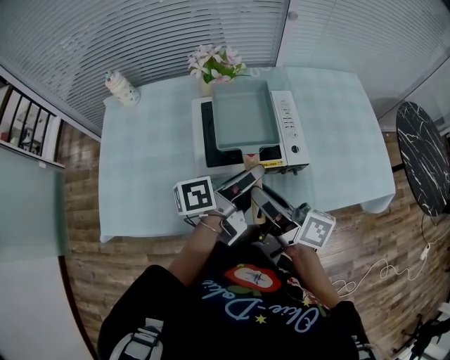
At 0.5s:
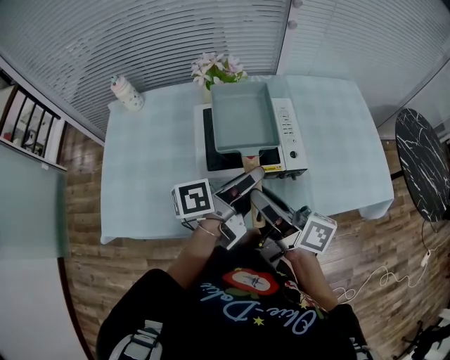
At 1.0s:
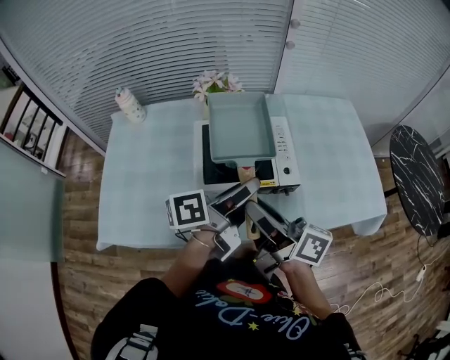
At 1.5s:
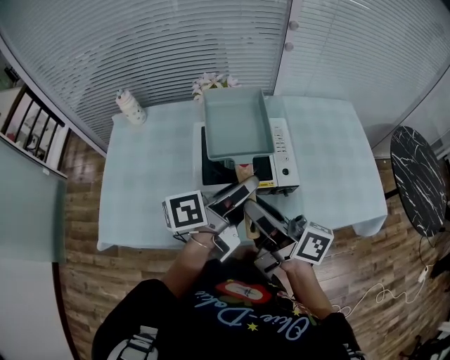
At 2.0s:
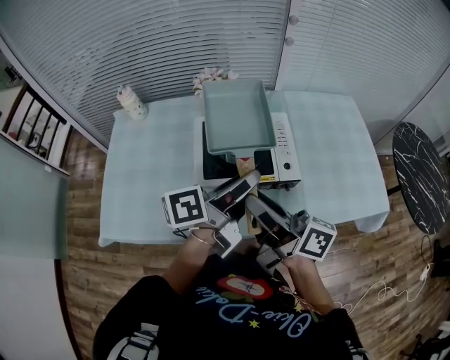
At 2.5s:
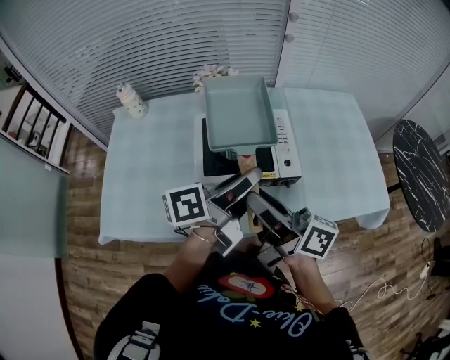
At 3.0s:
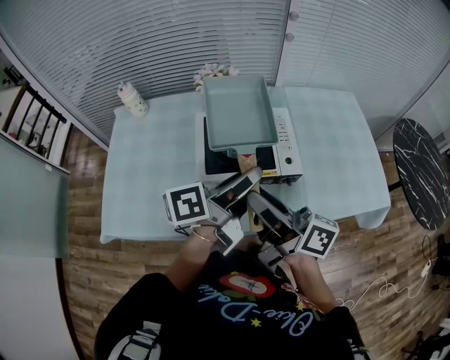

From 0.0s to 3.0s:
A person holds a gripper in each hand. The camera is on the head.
From 0.0s to 1.5s: The two grippers go approximately 5 cm upward.
From 1.5s to 3.0s: Both grippers stay put.

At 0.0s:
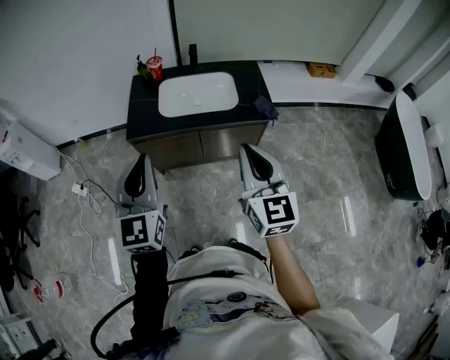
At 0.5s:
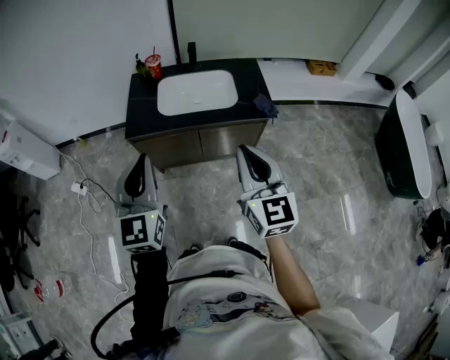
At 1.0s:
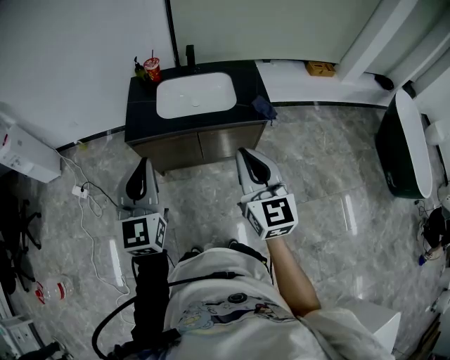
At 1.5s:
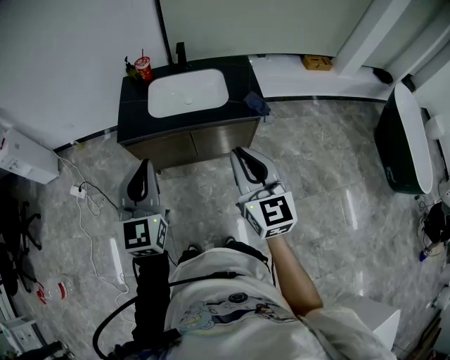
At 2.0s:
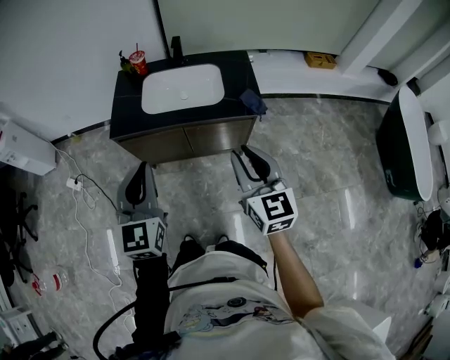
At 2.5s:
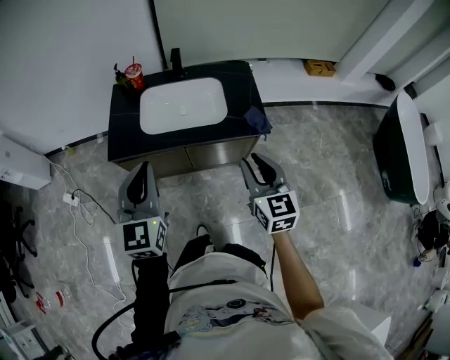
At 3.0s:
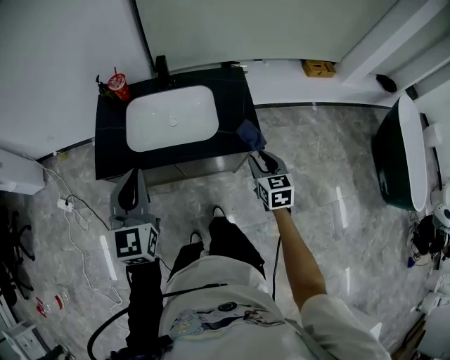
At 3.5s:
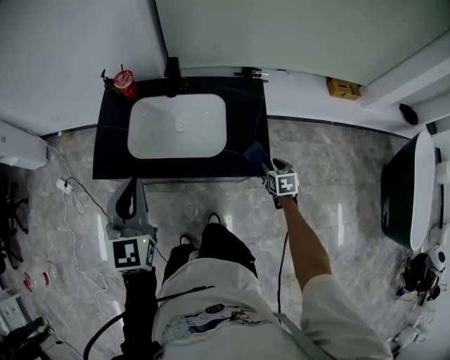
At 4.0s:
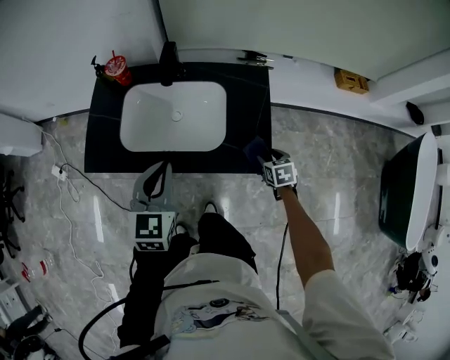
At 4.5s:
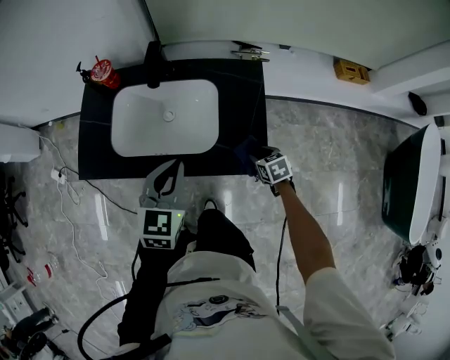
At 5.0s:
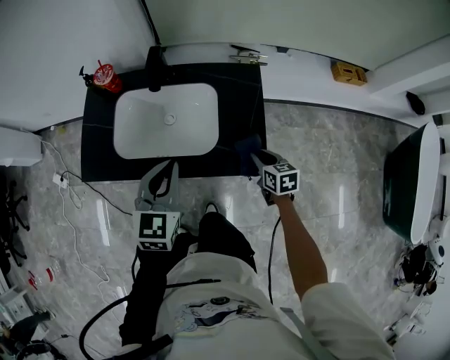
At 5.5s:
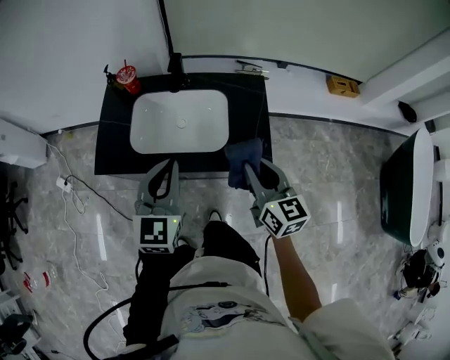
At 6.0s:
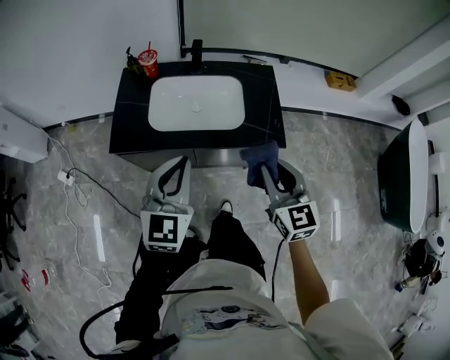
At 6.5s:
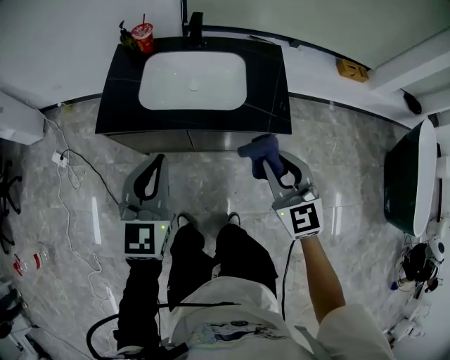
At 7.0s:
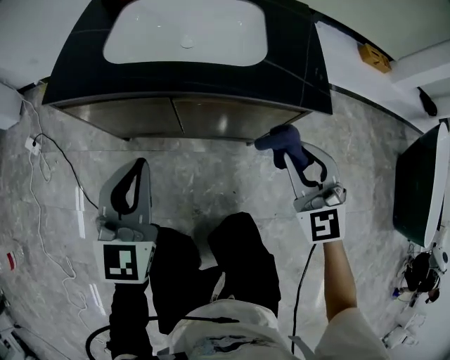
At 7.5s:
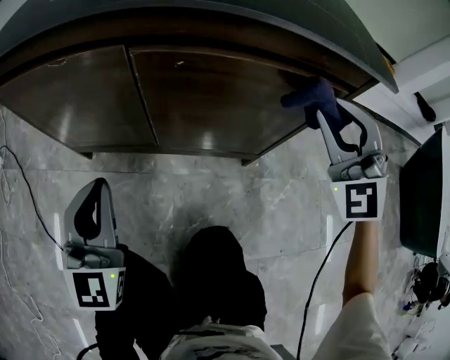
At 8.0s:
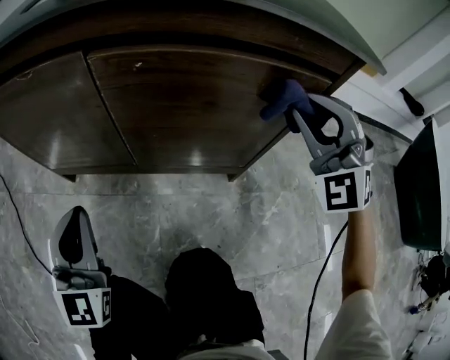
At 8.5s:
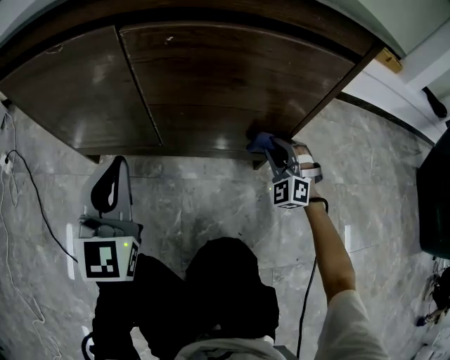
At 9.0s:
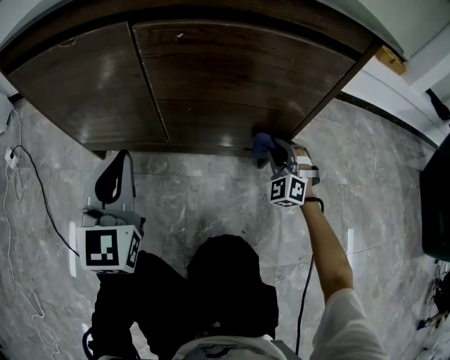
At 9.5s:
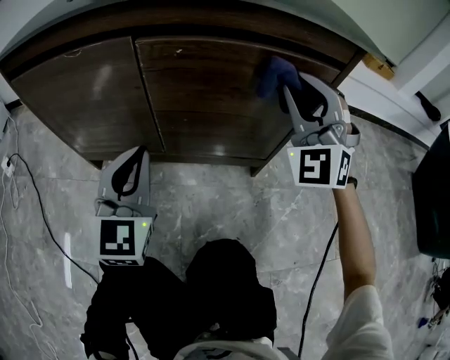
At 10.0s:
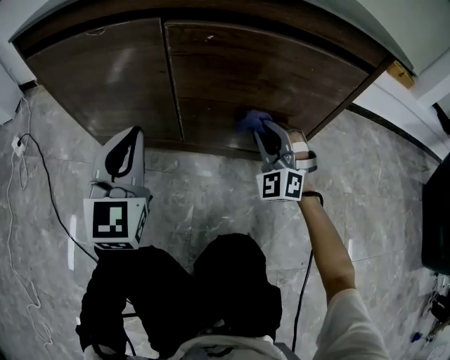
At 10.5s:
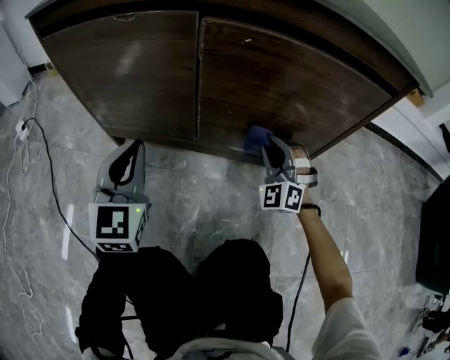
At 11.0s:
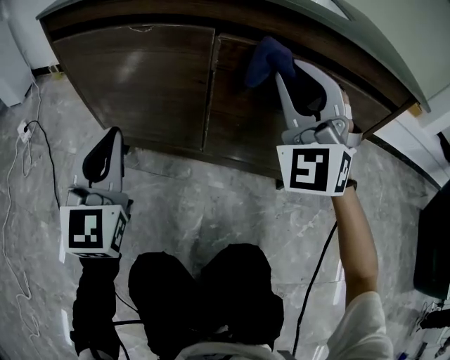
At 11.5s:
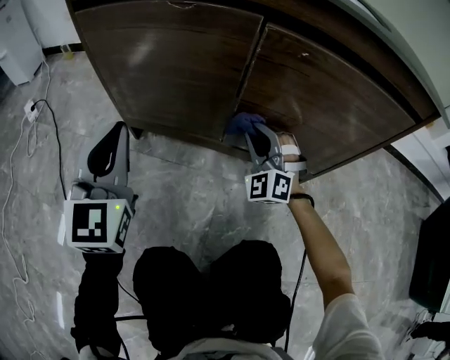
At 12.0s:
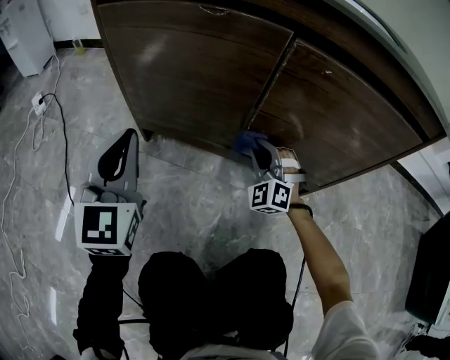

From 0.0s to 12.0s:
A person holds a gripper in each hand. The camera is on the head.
From 0.0s to 2.0s: The left gripper is displaced to the right by approximately 10 cm. The right gripper heads to the right and downward, covering approximately 10 cm, and opens up.
From 2.0s to 4.0s: The left gripper heads forward and downward, covering roughly 30 cm. The right gripper goes some 50 cm downward, forward and to the right, tips its fingers downward by about 50 degrees, and opens up.
From 4.0s to 6.0s: The left gripper travels backward, upward and to the left by some 15 cm. Meanwhile the right gripper moves upward, to the left and backward, some 40 cm, tips its fingers upward by about 40 degrees, and closes up.
From 6.0s to 8.0s: The grippers both shift downward by approximately 50 cm. The right gripper rotates around the line of its fingers by about 70 degrees, counterclockwise from behind.
From 8.0s to 10.0s: The right gripper goes up and down, some 30 cm each way, reversing 2 times.
From 10.0s to 12.0s: The left gripper moves to the left, approximately 15 cm, while the right gripper goes up and down, roughly 30 cm each way, reversing 2 times.

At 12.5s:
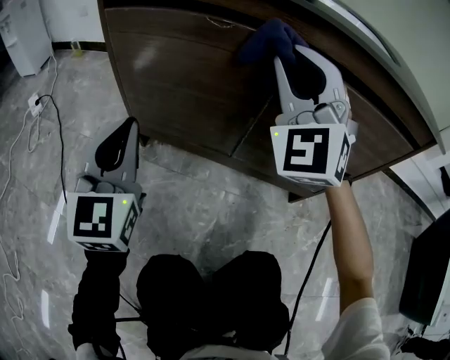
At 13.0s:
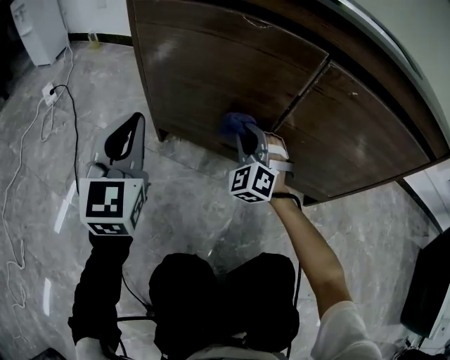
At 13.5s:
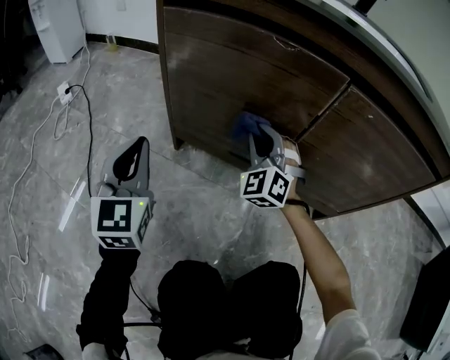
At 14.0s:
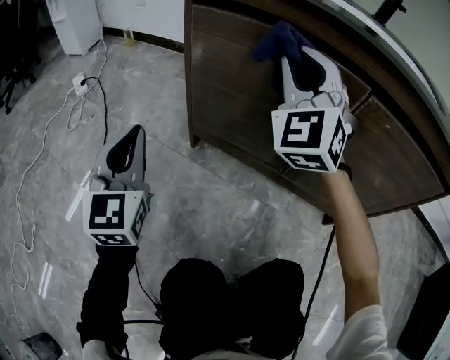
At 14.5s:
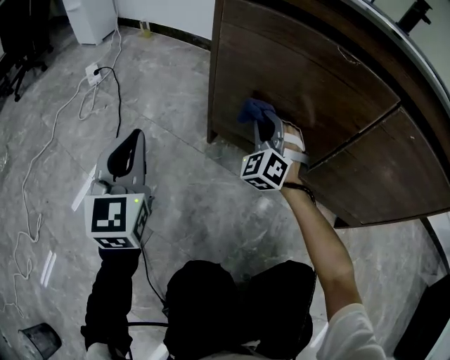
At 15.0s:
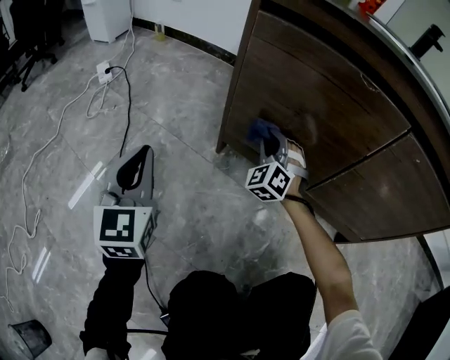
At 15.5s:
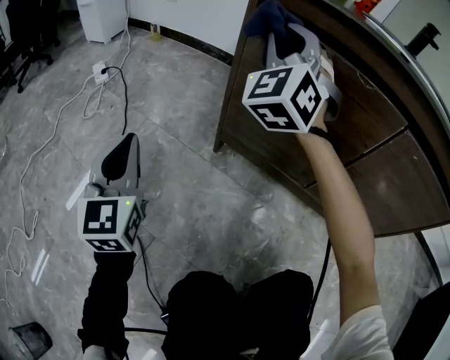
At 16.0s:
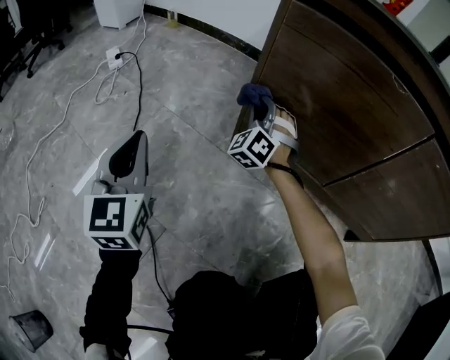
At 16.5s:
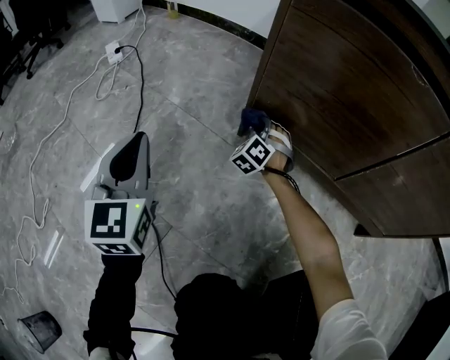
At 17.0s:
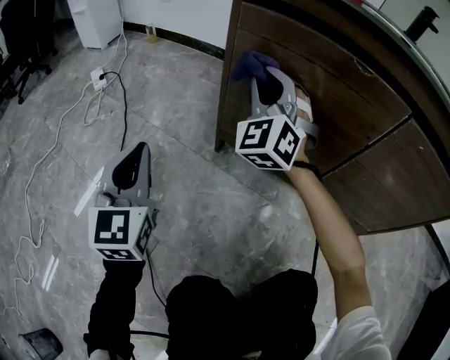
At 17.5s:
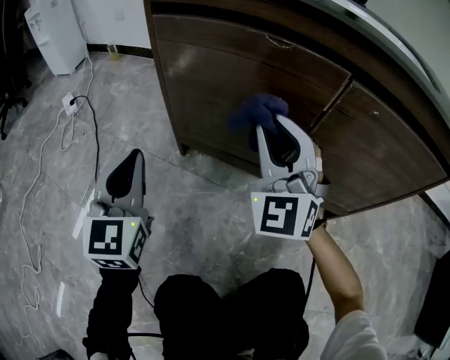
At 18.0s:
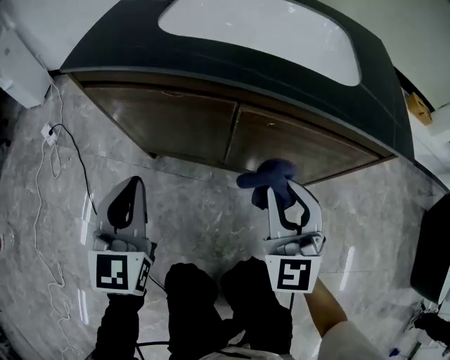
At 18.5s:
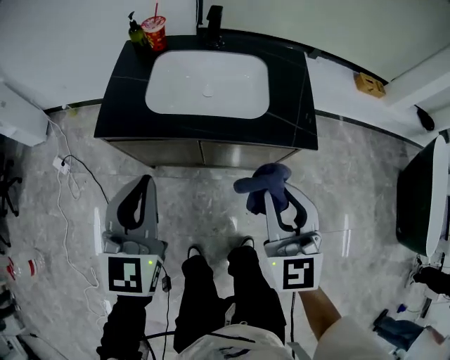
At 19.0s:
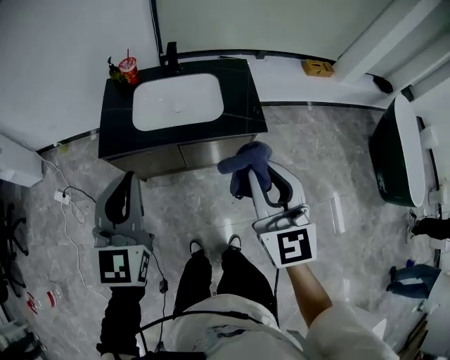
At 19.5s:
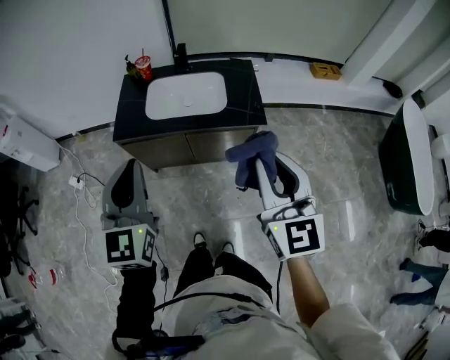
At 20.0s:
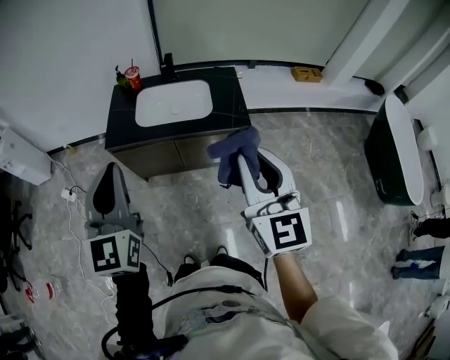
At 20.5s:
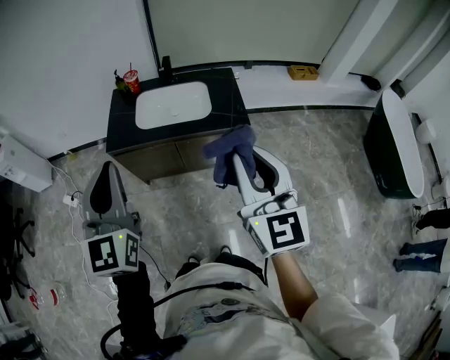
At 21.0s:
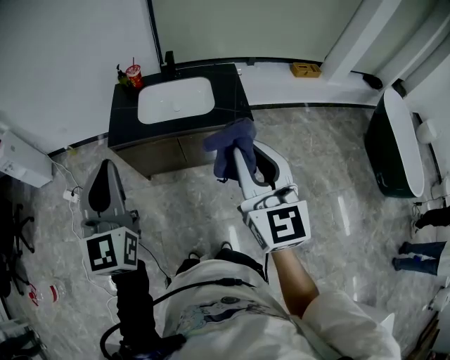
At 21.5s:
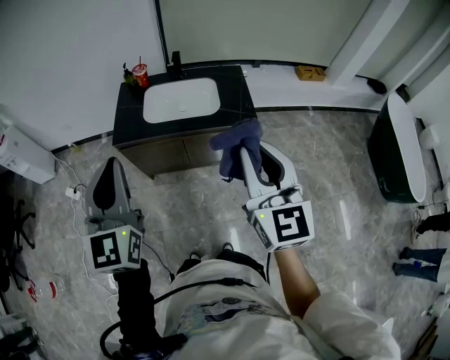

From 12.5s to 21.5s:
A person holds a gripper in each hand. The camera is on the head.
From 12.5s to 14.5s: The right gripper swings up and down, some 30 cm each way, with 2 reversals; the left gripper heads to the left, covering approximately 20 cm.
From 14.5s to 17.0s: The right gripper swings up and down, approximately 40 cm each way, with 2 reversals. The left gripper goes to the left and returns, about 10 cm each way.
From 17.0s to 19.5s: The two grippers go about 70 cm upward. The right gripper rotates around the line of its fingers by approximately 50 degrees, clockwise from behind. Meanwhile the left gripper rotates about 30 degrees.
From 19.5s to 21.5s: The right gripper is displaced to the left by some 5 cm. The left gripper is displaced to the left and upward by roughly 10 cm.

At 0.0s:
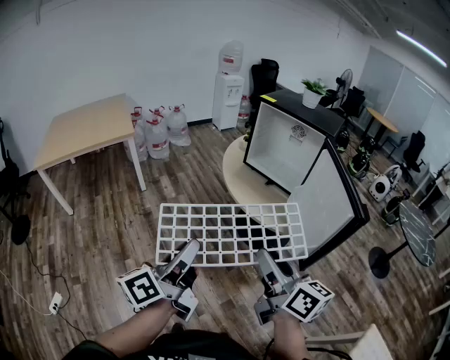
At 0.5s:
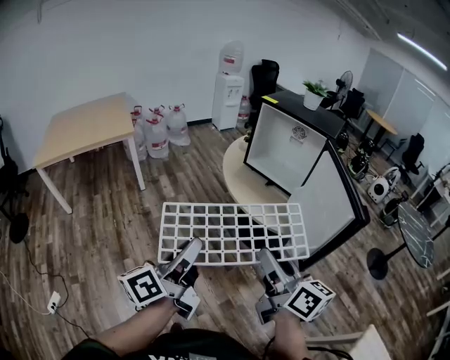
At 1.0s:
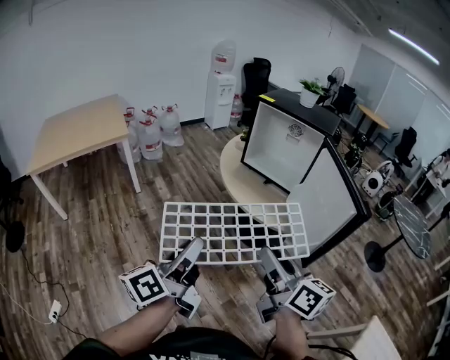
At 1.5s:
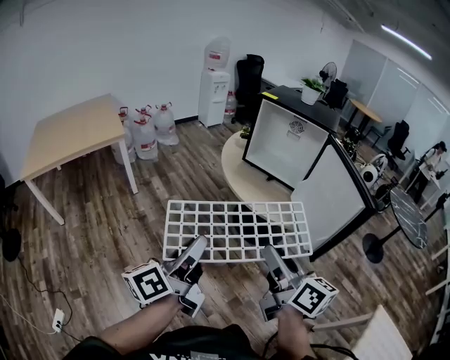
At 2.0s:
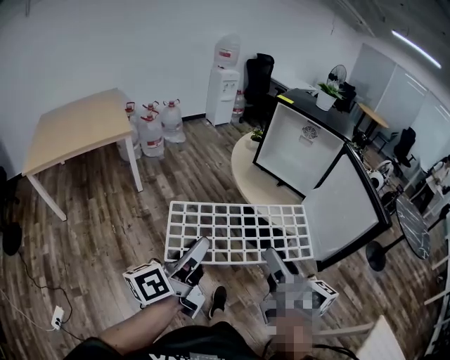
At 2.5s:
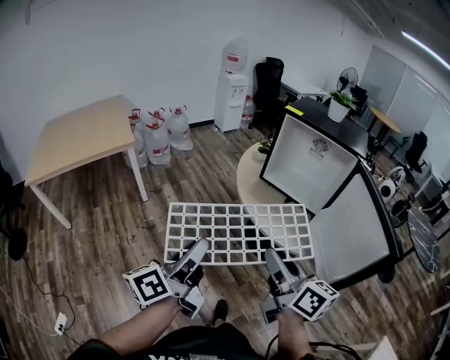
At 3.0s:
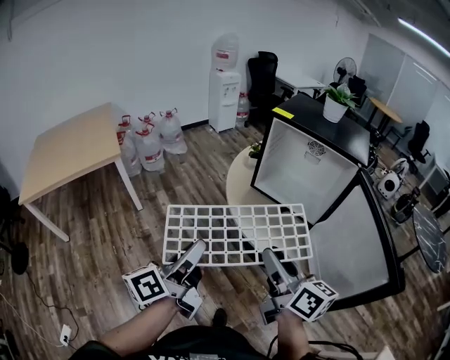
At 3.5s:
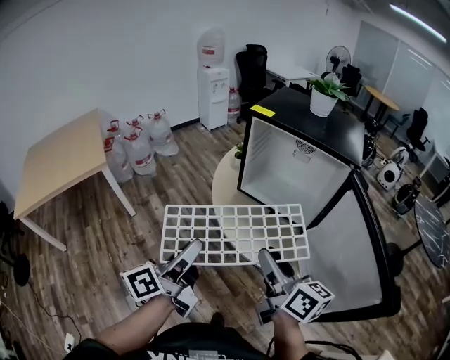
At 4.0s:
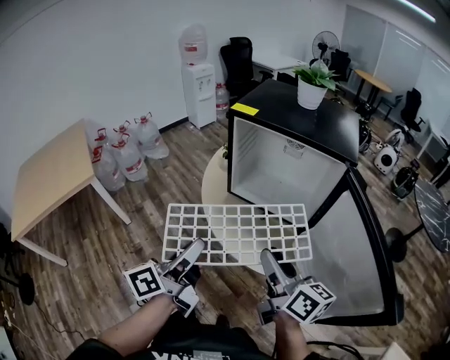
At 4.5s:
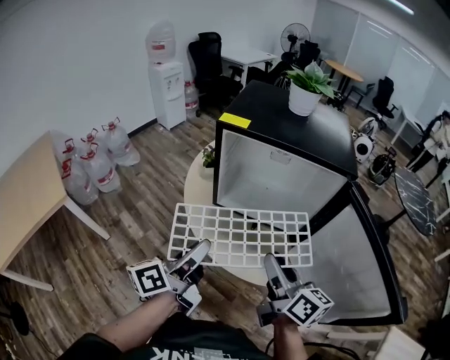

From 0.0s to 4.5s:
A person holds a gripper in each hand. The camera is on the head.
From 0.0s to 2.0s: The left gripper moves to the left and forward, roughly 10 cm. The right gripper heads to the left, covering roughly 10 cm.
From 2.0s to 4.5s: Both grippers are carried forward, about 40 cm. The left gripper turns by approximately 30 degrees.
